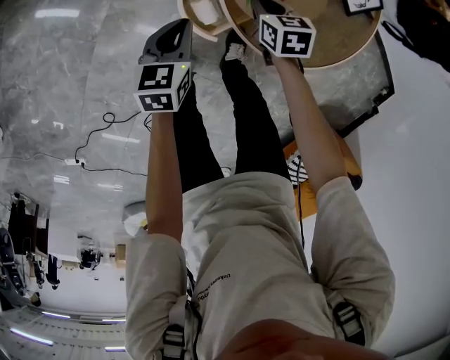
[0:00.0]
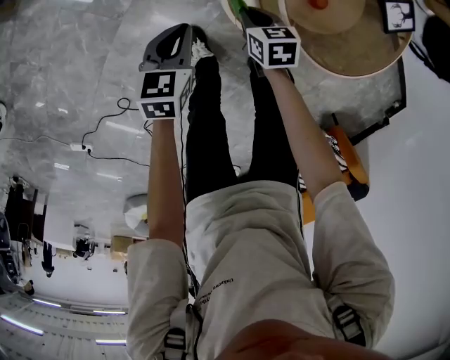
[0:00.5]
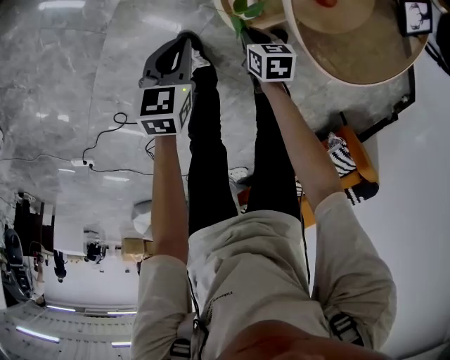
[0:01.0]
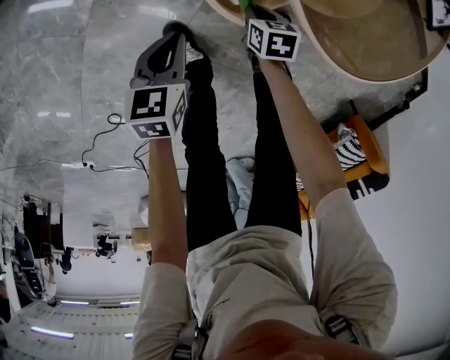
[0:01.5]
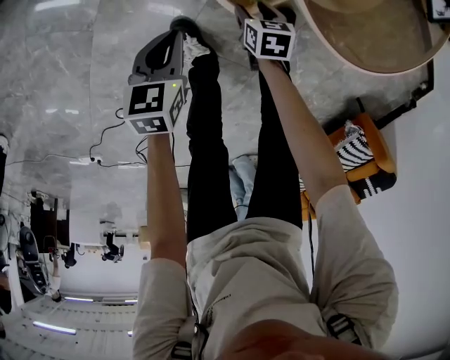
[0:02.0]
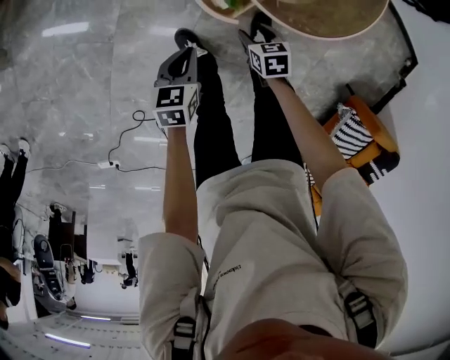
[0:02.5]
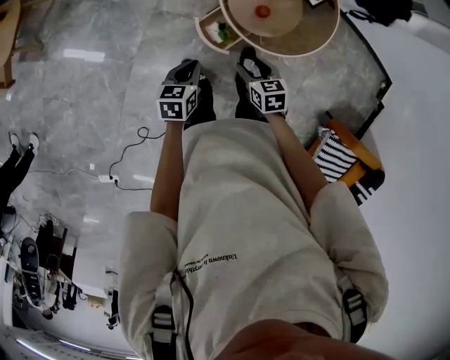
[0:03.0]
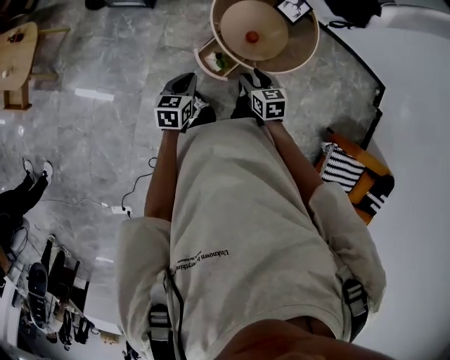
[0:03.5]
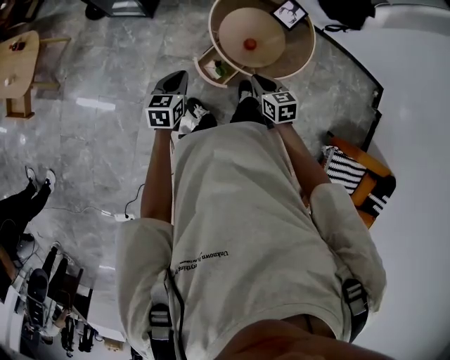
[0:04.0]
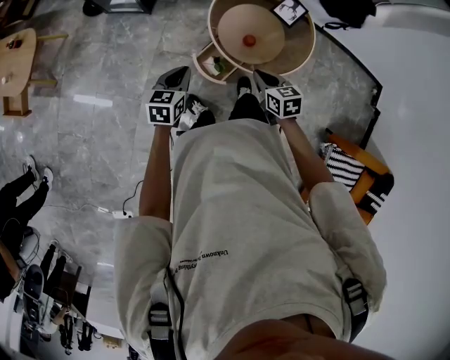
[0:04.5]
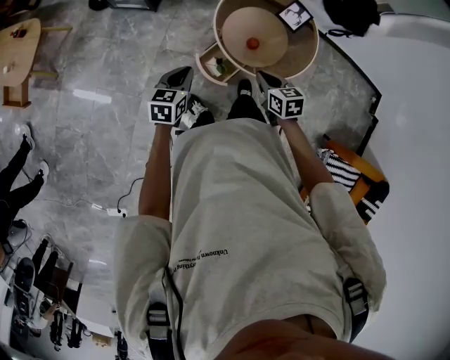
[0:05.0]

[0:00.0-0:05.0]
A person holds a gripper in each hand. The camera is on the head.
0:00.0 to 0:02.5: The left gripper goes approximately 15 cm backward and to the left, and travels downward and back again, about 25 cm each way. The right gripper shifts roughly 20 cm backward, moves approximately 30 cm downward and comes back, and opens its fingers.
0:02.5 to 0:05.0: The two grippers go some 35 cm upward. The right gripper turns by some 20 degrees, and closes its fingers.

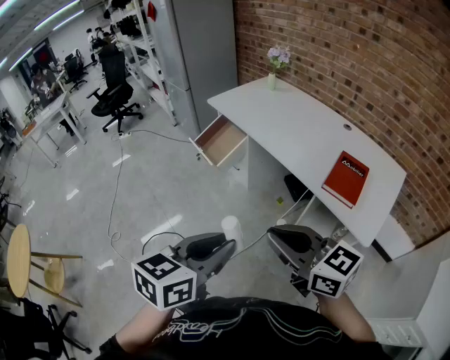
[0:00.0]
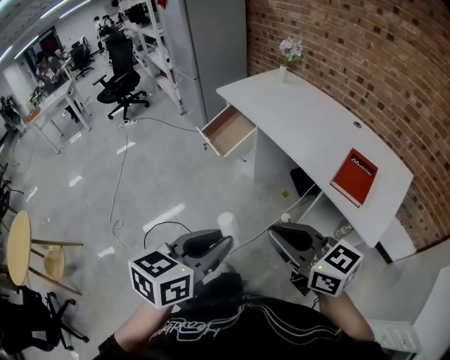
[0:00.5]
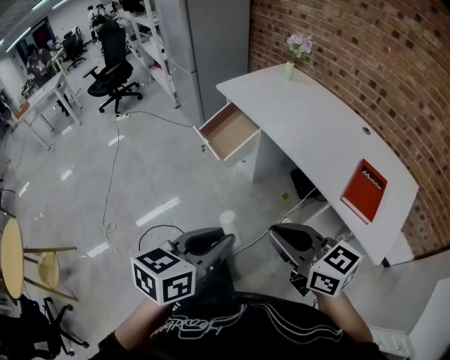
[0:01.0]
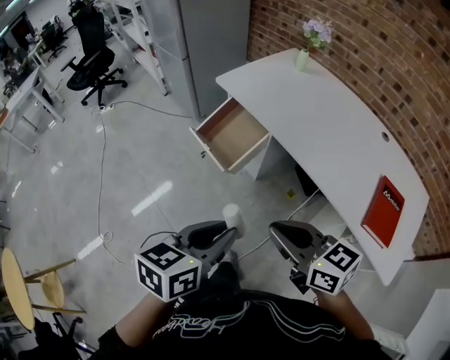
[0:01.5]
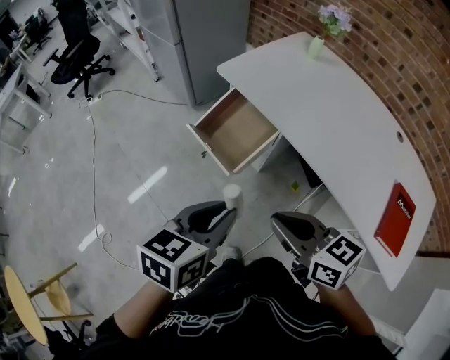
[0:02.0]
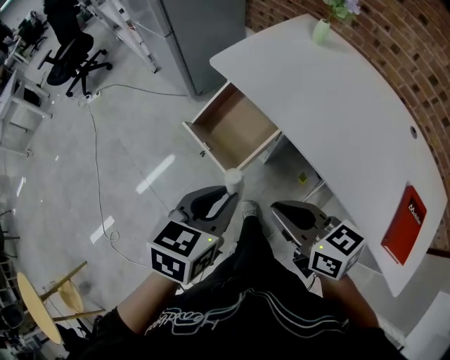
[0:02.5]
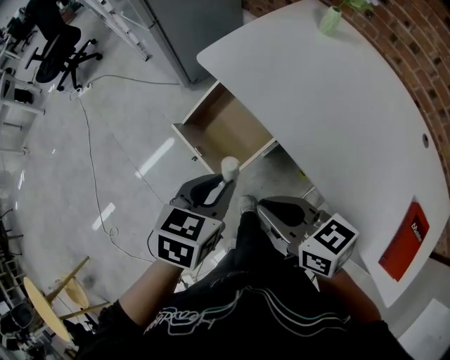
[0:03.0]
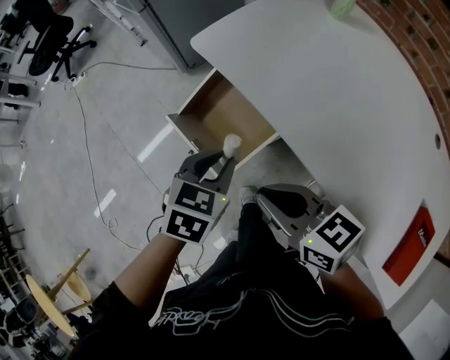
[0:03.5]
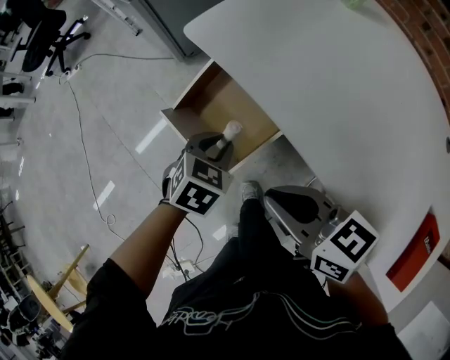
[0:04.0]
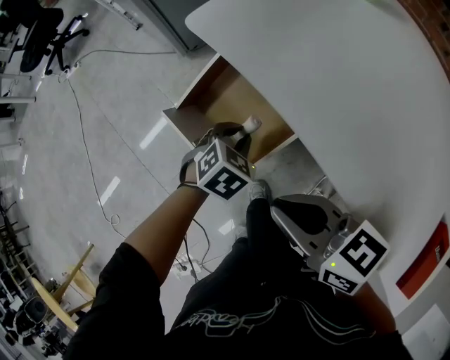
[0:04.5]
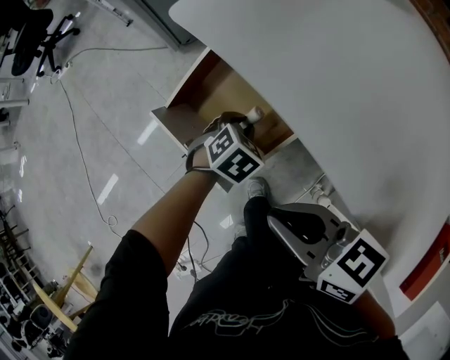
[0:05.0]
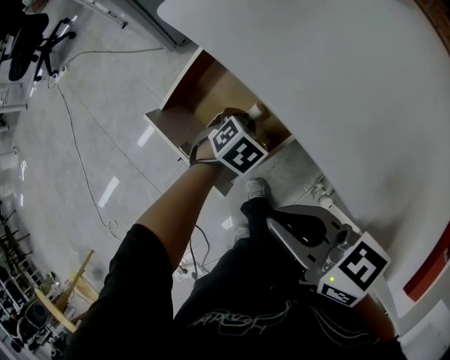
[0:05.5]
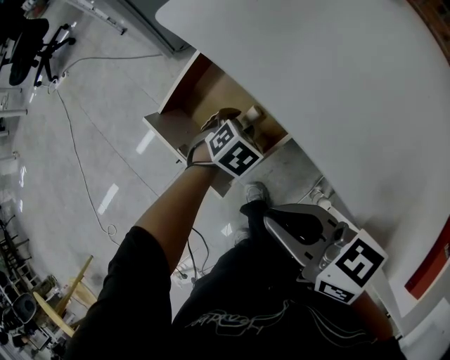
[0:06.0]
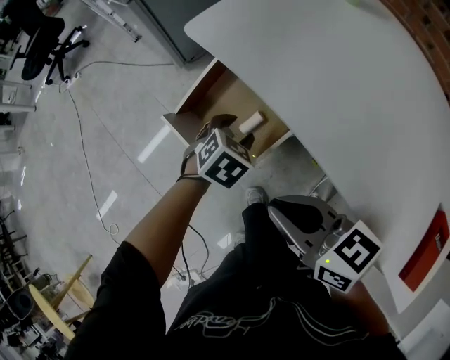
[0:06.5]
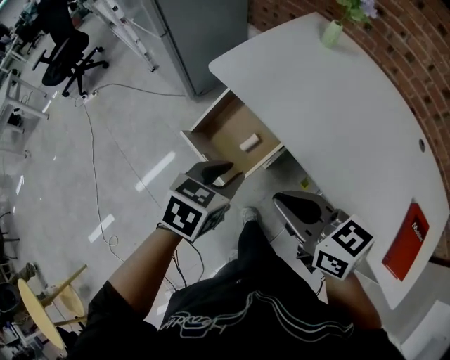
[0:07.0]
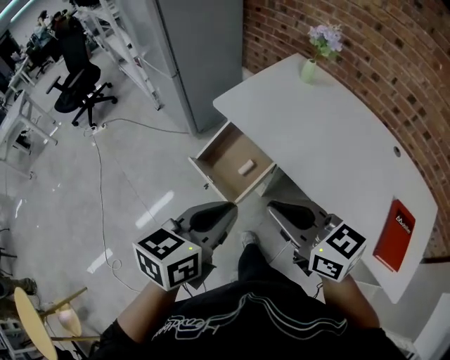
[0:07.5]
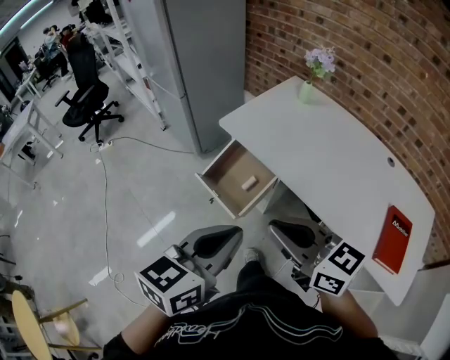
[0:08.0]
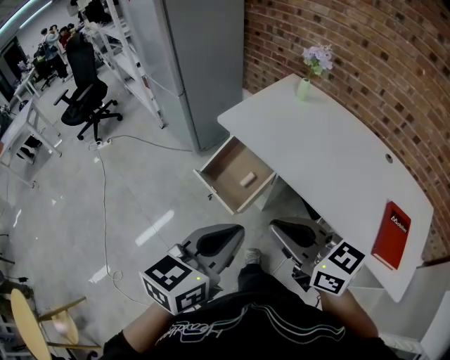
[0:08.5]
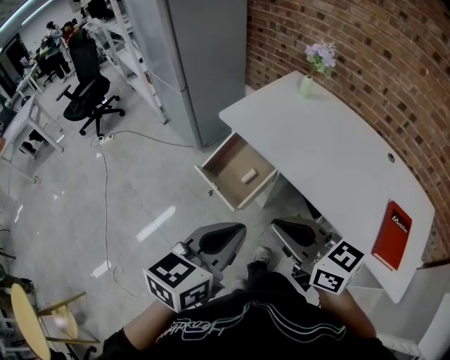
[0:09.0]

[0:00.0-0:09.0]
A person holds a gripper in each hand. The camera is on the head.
0:00.0 to 0:02.0: Both grippers are carried forward, approximately 50 cm. The right gripper swivels some 20 degrees.
0:02.0 to 0:04.5: The left gripper moves downward and forward, approximately 50 cm, and rotates roughly 40 degrees; the right gripper goes roughly 30 cm forward and downward.
0:04.5 to 0:07.0: The left gripper heads upward and backward, covering some 30 cm, and changes its angle by about 20 degrees. The right gripper moves upward and backward, some 15 cm.
0:07.0 to 0:09.0: The right gripper moves backward and upward, some 20 cm; the left gripper goes about 30 cm upward and backward, swivels approximately 30 degrees, and closes.

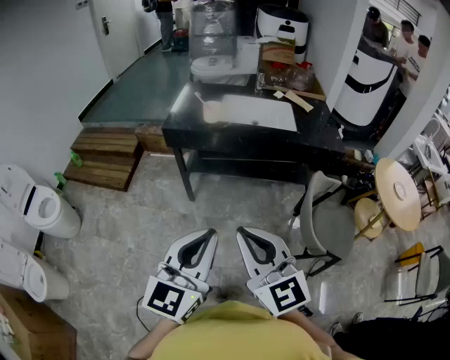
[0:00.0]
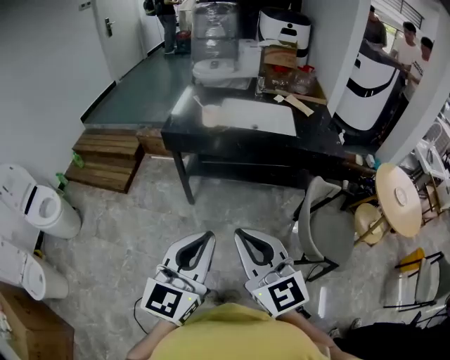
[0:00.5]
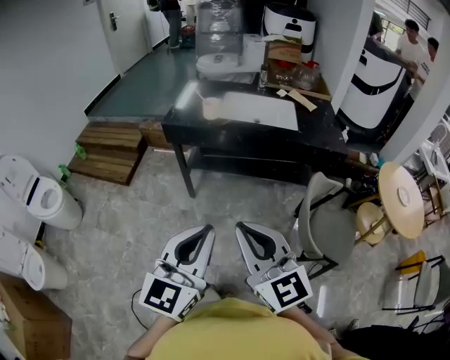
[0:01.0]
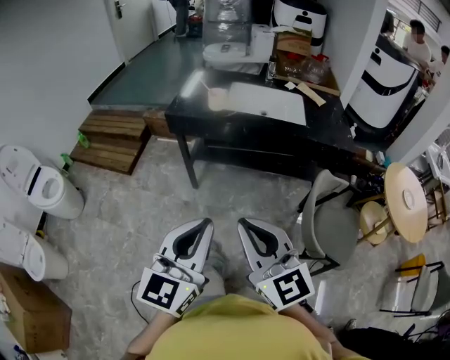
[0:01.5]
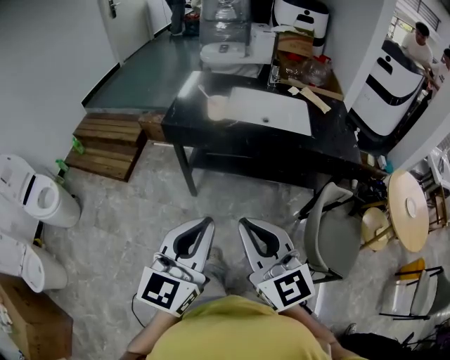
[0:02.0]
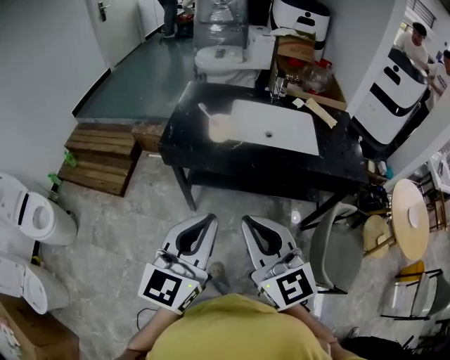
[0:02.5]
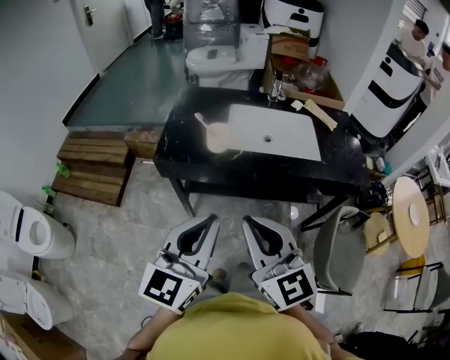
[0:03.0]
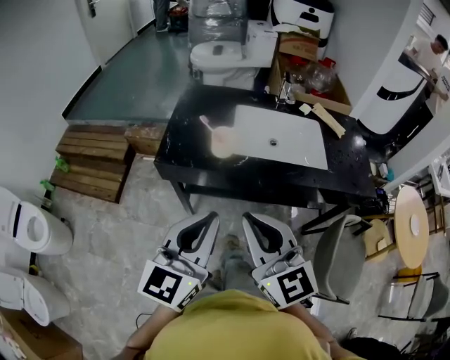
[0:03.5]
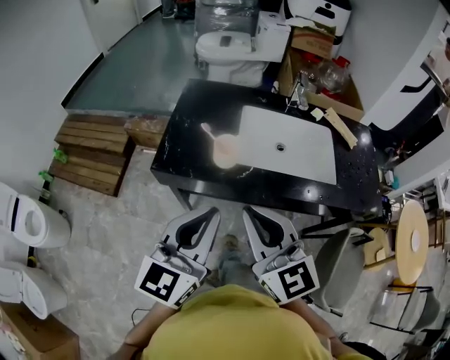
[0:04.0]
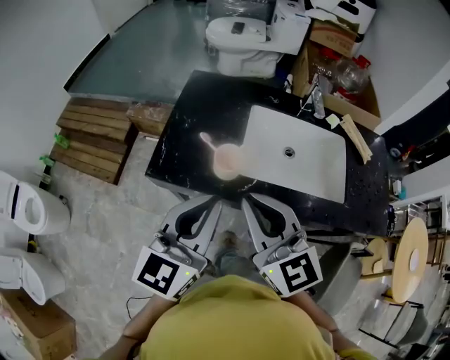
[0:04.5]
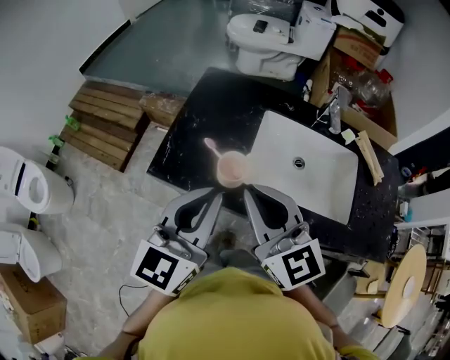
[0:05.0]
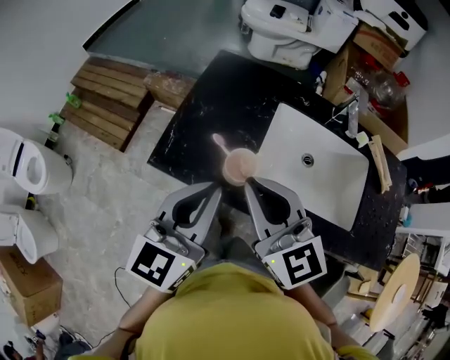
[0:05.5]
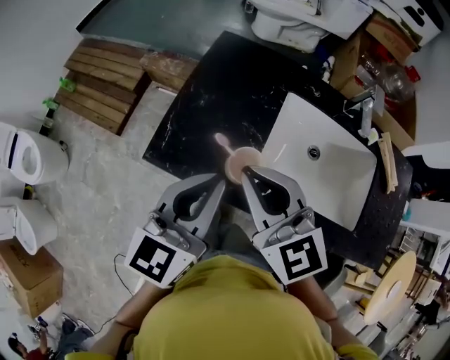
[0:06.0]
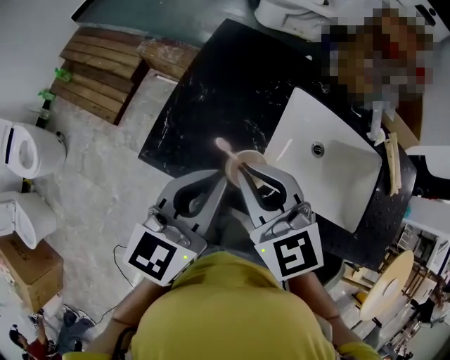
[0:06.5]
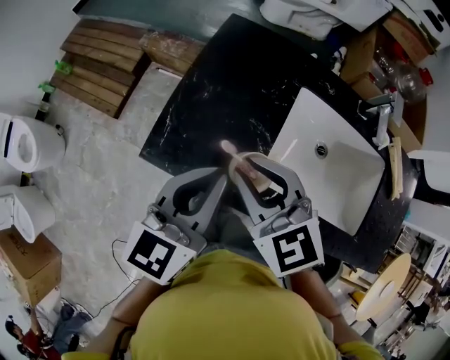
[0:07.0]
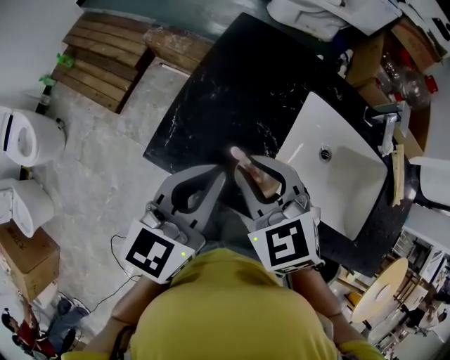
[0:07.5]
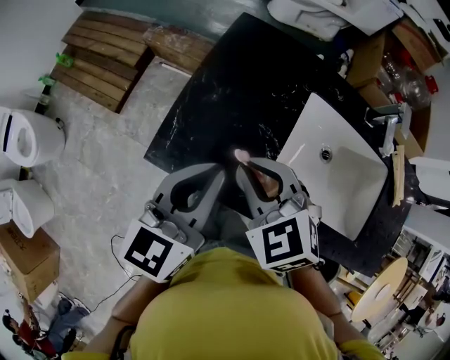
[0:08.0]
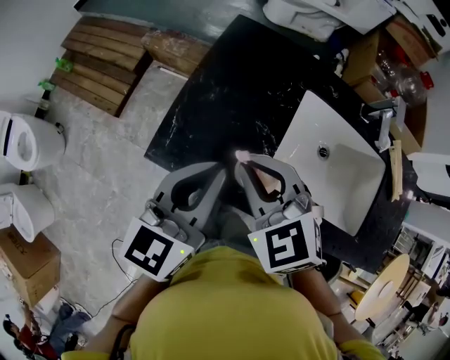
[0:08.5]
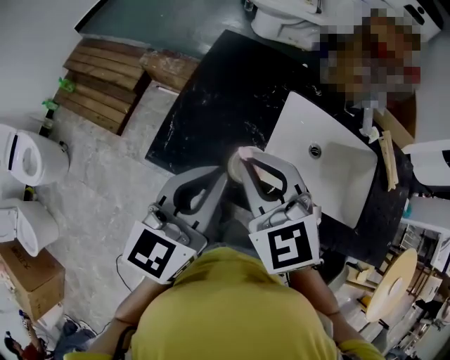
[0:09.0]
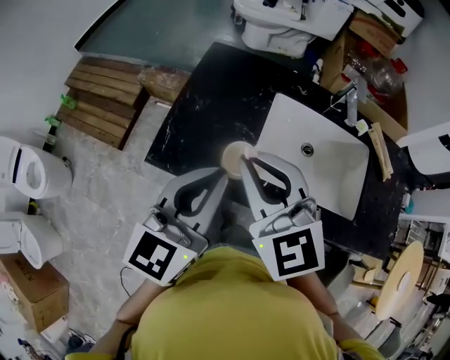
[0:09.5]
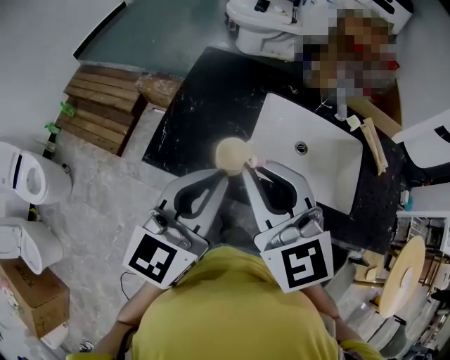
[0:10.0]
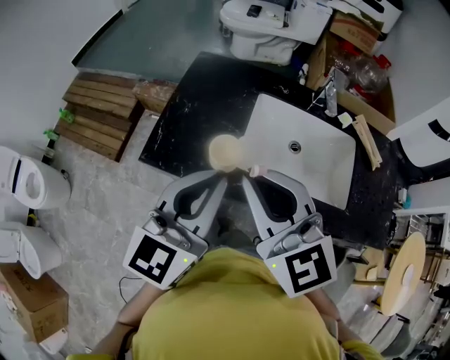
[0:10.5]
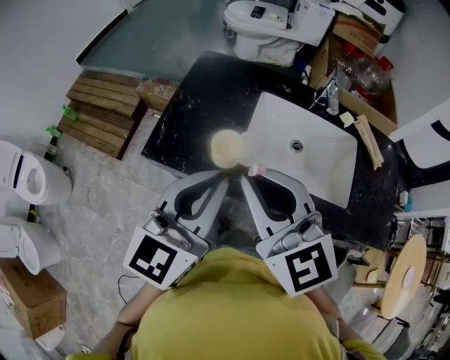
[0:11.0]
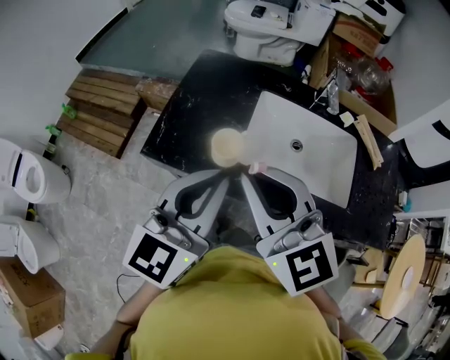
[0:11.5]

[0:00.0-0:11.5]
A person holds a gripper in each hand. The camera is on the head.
0:00.0 to 0:02.0: Both grippers move forward, about 10 cm.
0:02.0 to 0:04.0: The grippers both shift forward by approximately 35 cm.
0:04.0 to 0:06.0: Both grippers travel together forward, approximately 20 cm.
0:06.0 to 0:07.5: The left gripper shifts by approximately 5 cm. Meanwhile the right gripper goes some 10 cm downward, and changes its angle by approximately 30 degrees.
0:07.5 to 0:09.5: Both grippers move upward and backward, roughly 10 cm. The right gripper changes its angle by some 30 degrees.
0:09.5 to 0:11.5: Both grippers travel together backward, about 5 cm.

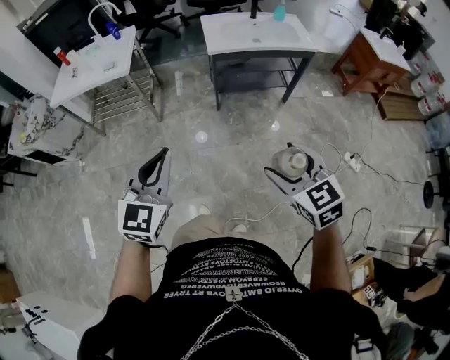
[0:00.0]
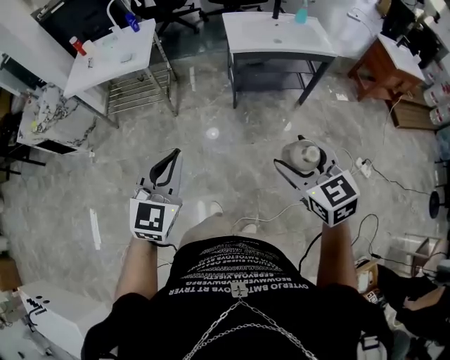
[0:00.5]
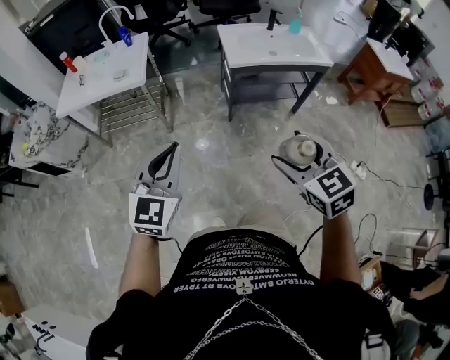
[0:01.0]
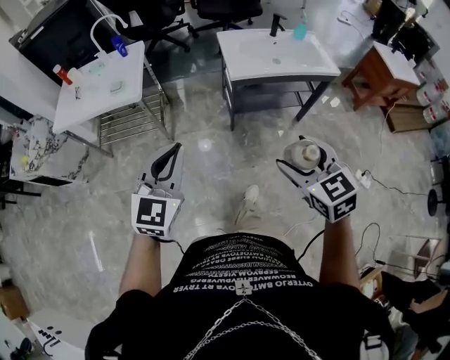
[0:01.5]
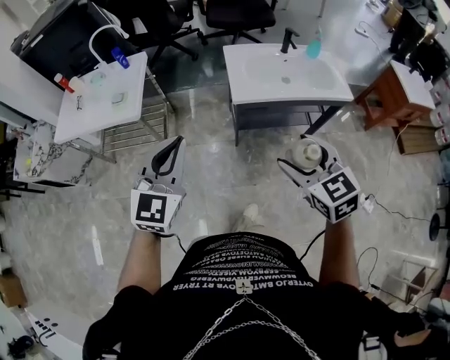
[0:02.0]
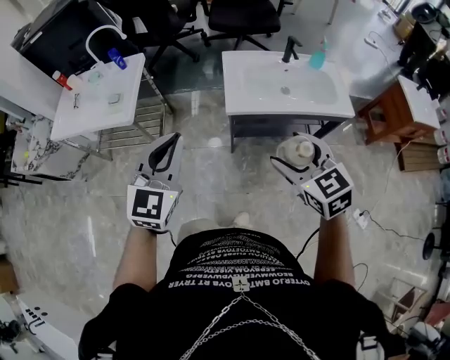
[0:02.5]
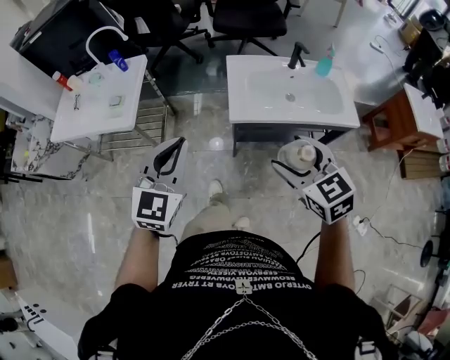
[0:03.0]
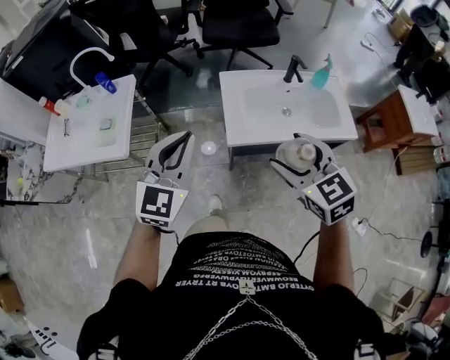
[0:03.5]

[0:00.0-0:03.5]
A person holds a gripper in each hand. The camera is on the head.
0:00.0 to 0:02.0: Both grippers travel together forward, approximately 40 cm.
0:02.0 to 0:03.5: Both grippers travel together forward, roughly 25 cm.
